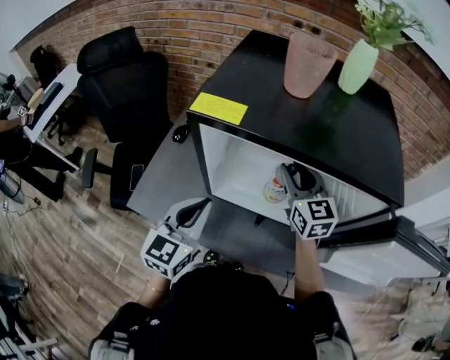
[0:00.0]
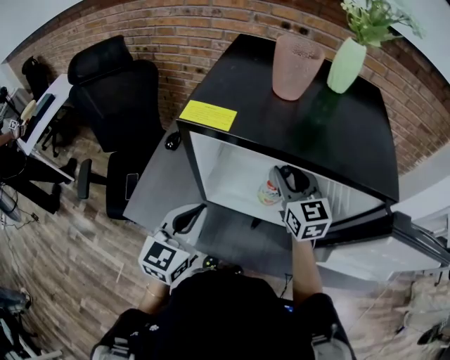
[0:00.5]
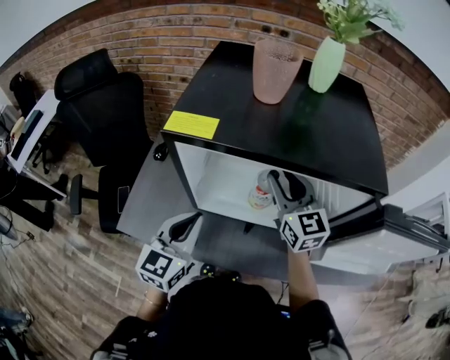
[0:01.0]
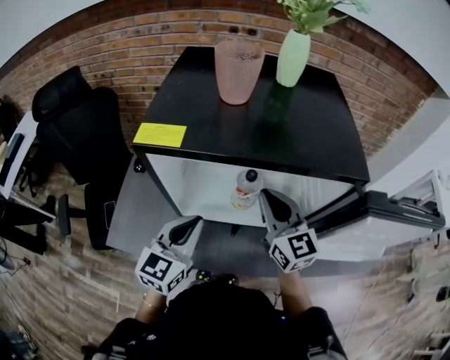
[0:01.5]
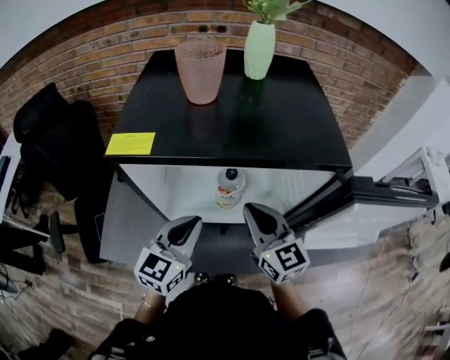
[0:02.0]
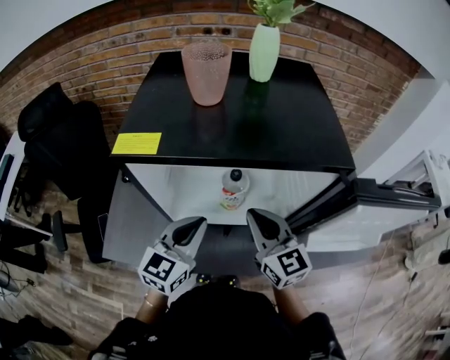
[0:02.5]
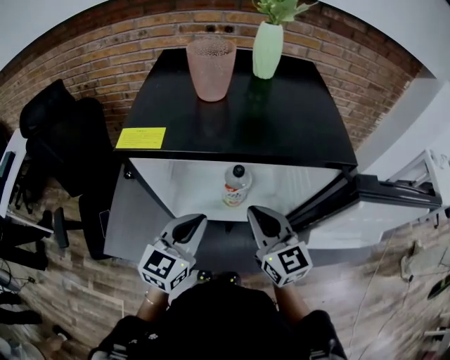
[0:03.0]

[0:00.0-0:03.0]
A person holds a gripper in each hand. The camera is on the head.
0:00.0 to 0:01.5: The right gripper travels backward by about 5 cm, and closes. Meanwhile the left gripper heads to the right, covering roughly 5 cm.
0:01.5 to 0:03.0: The right gripper ends up roughly 5 cm from where it was.

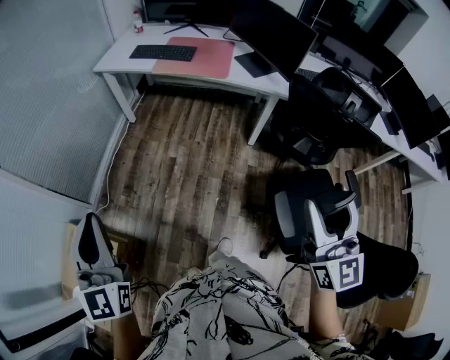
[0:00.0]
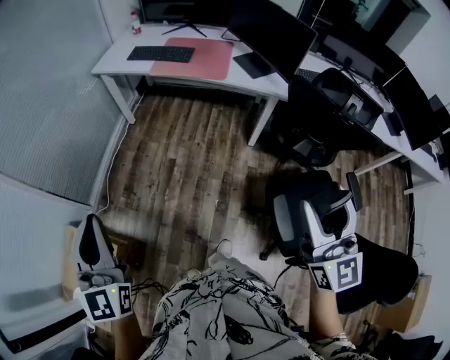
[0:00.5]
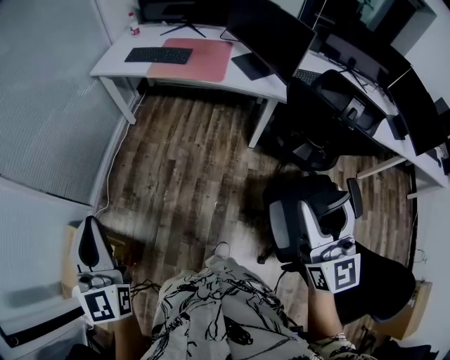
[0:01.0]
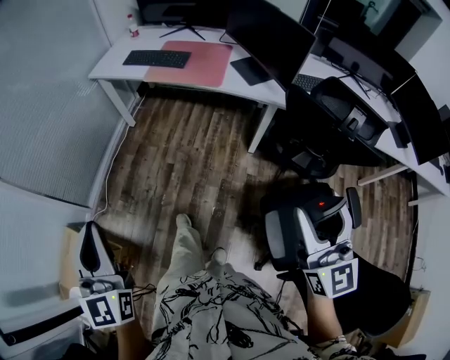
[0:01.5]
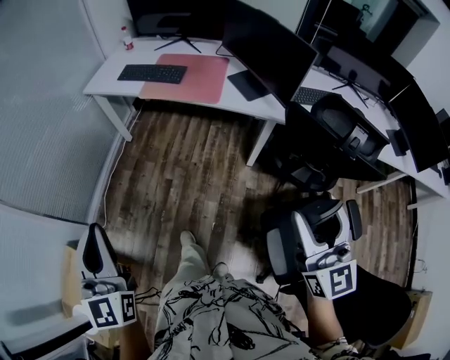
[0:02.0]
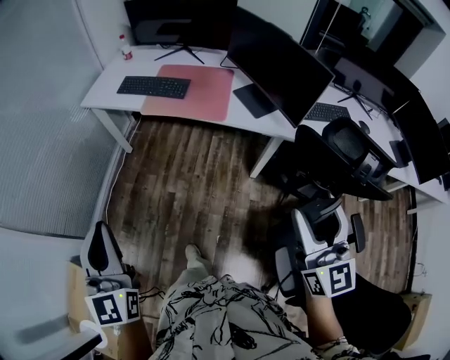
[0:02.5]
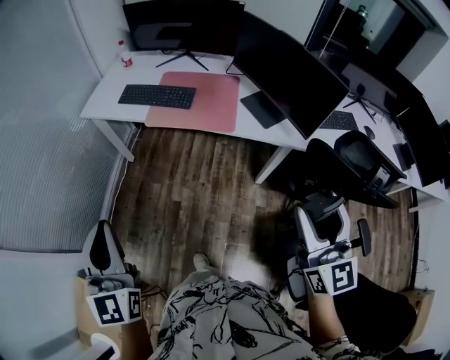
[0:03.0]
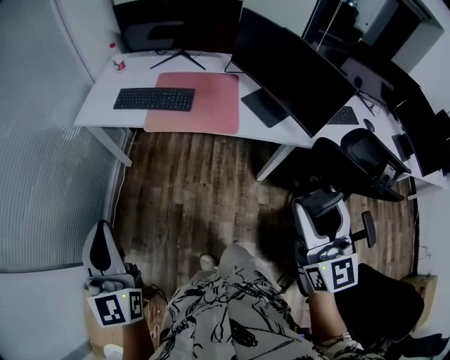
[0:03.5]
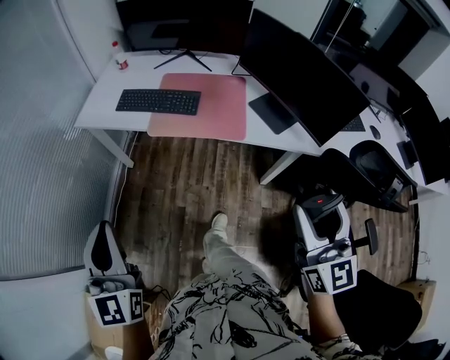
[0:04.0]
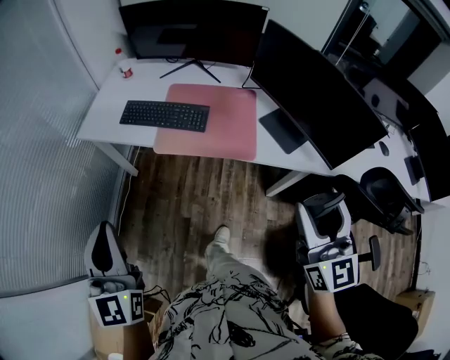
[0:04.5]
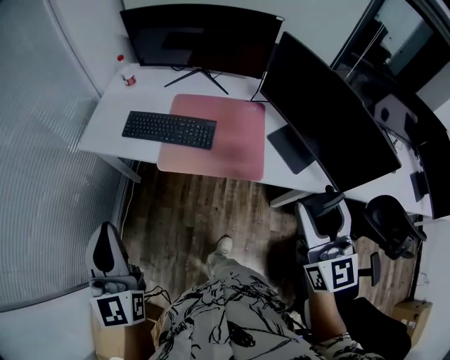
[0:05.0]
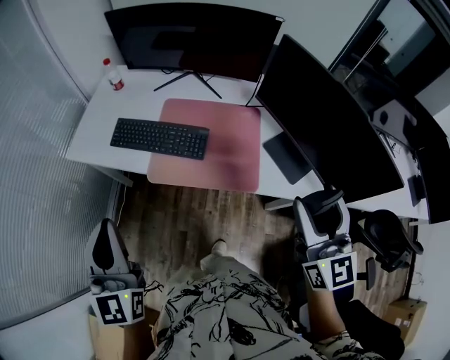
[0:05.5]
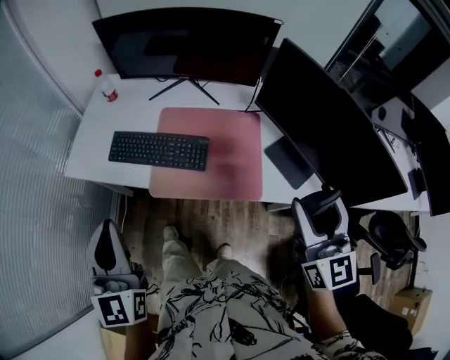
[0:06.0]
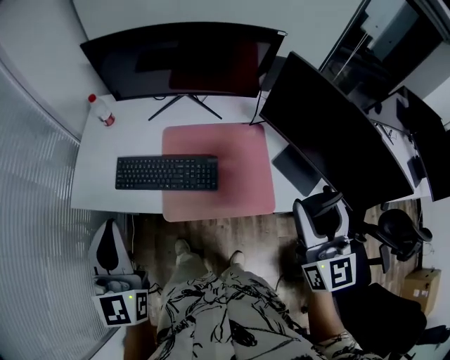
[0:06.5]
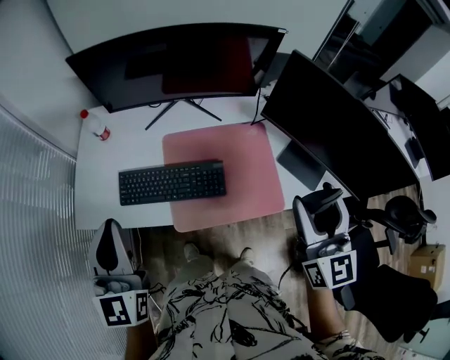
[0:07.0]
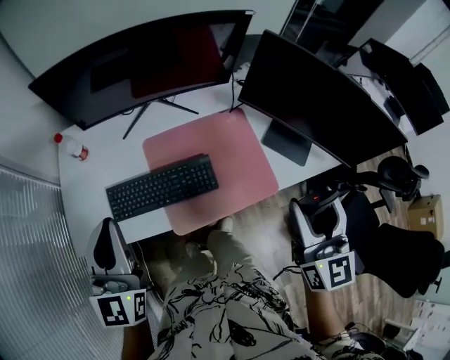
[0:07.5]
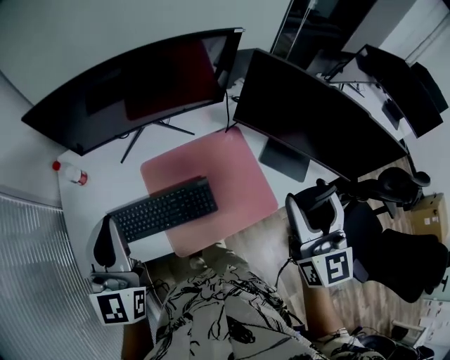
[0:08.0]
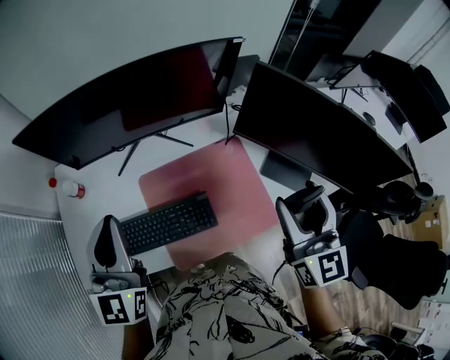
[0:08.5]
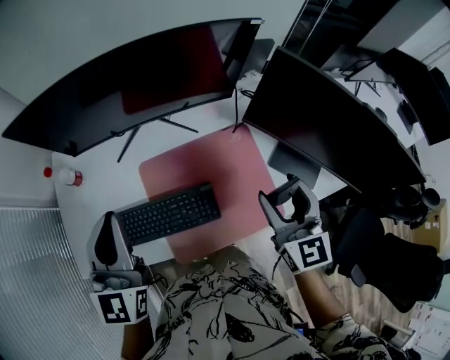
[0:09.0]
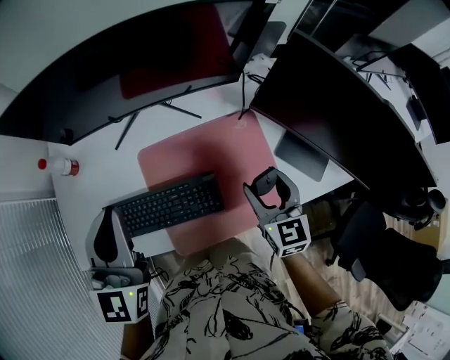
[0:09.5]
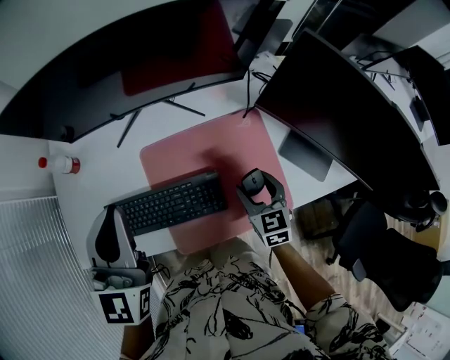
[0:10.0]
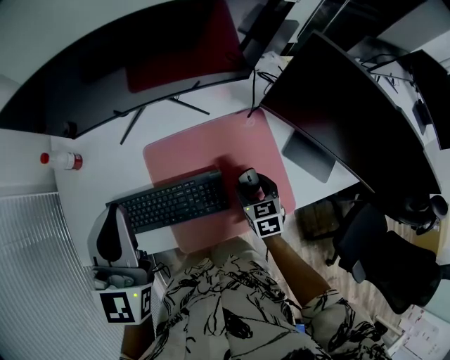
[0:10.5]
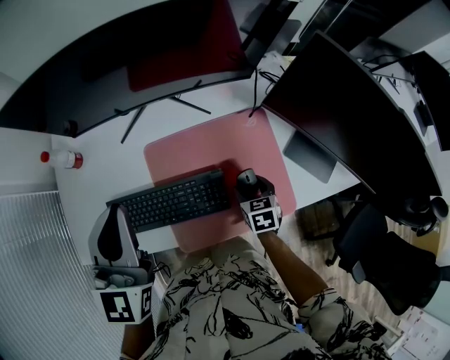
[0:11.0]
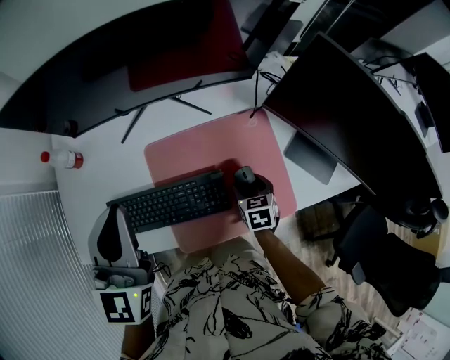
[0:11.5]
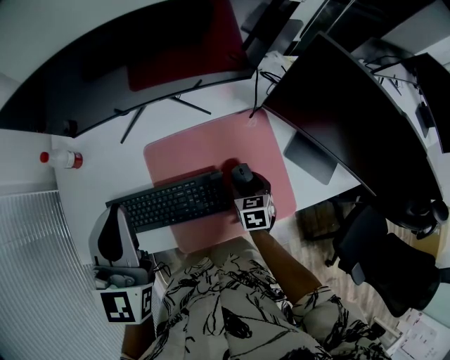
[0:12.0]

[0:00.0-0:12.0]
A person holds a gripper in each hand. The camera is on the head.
0:00.0 to 0:02.0: The two grippers go some 15 cm forward and to the right.
0:02.0 to 0:04.0: The right gripper heads forward and to the left, covering approximately 30 cm. Meanwhile the left gripper travels forward by approximately 30 cm.
0:04.0 to 0:06.0: The grippers both shift forward by about 30 cm.
0:06.0 to 0:08.0: The left gripper changes place by roughly 25 cm, and rotates some 30 degrees. The right gripper shifts by roughly 10 cm, and changes its angle by about 30 degrees.
0:08.0 to 0:10.0: The left gripper shifts approximately 10 cm forward; the right gripper goes roughly 30 cm downward, and tilts its fingers some 40 degrees downward.
0:10.0 to 0:12.0: The right gripper shifts about 10 cm downward.

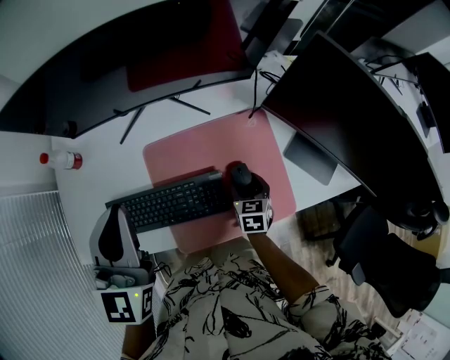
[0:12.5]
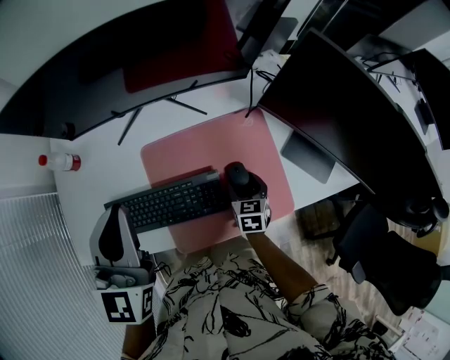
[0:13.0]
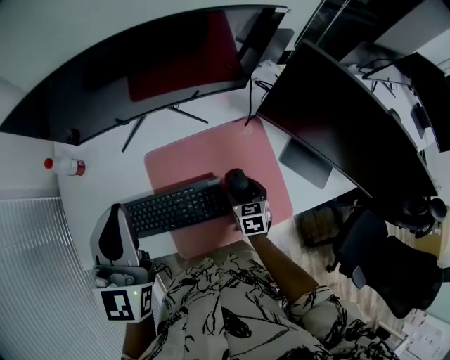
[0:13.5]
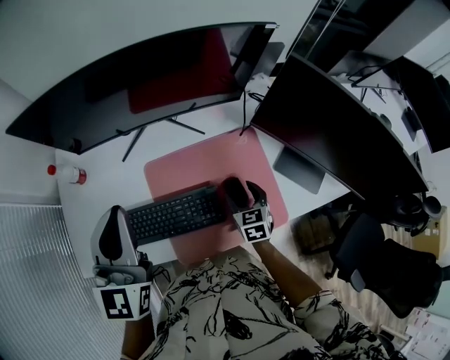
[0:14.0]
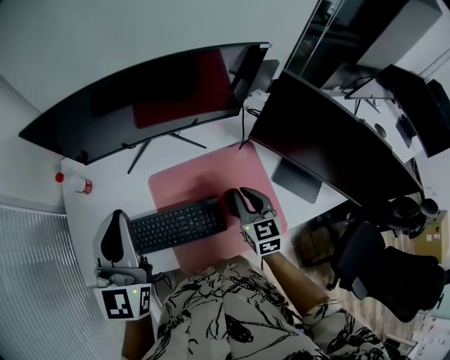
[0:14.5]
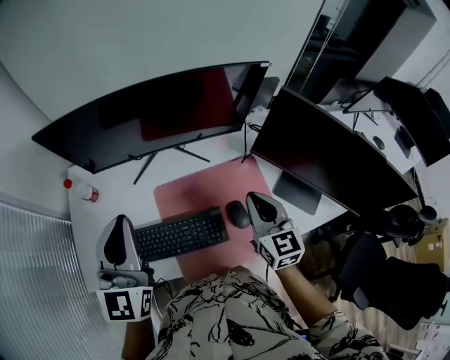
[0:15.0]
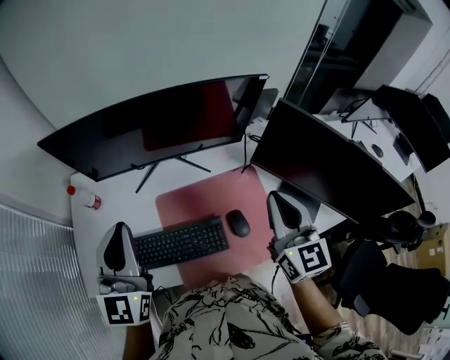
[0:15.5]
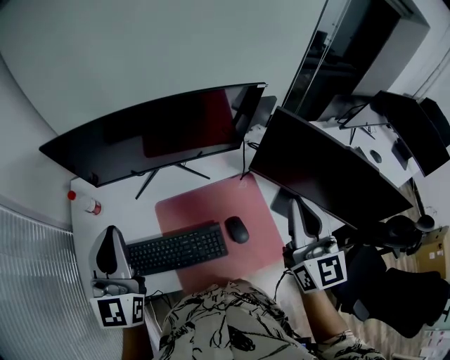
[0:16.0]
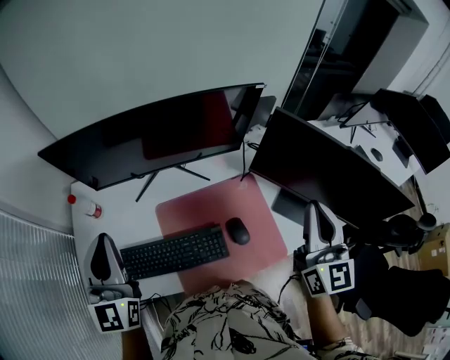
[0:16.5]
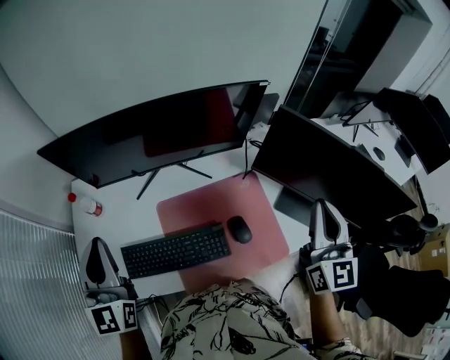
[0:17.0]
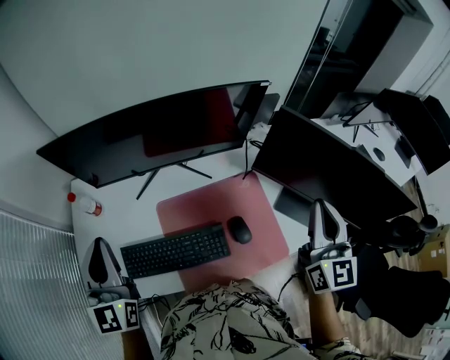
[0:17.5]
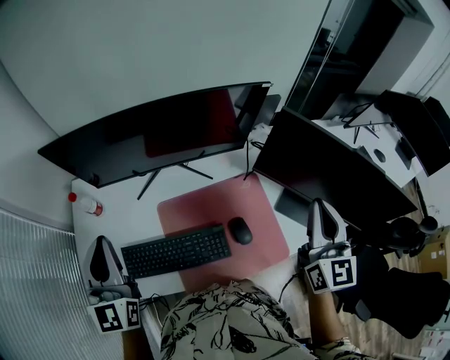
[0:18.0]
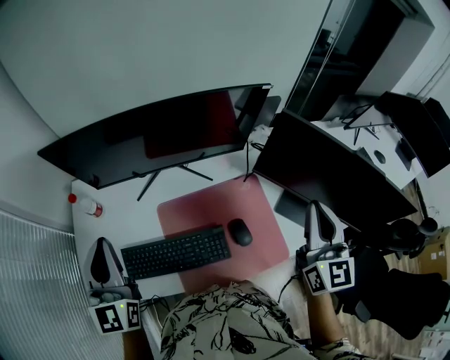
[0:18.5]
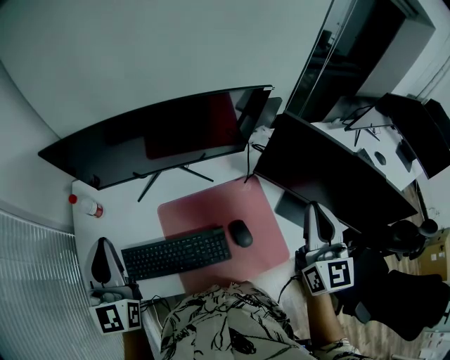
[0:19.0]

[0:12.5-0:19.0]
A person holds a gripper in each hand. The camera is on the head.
0:12.5 to 0:14.5: The right gripper travels upward by about 15 cm, changes its angle by roughly 20 degrees, and closes up.
0:14.5 to 0:17.0: The left gripper travels to the left by roughly 10 cm; the right gripper goes roughly 25 cm upward and to the right, and turns by about 30 degrees.
0:17.0 to 0:19.0: There are only small adjustments of the grippers.

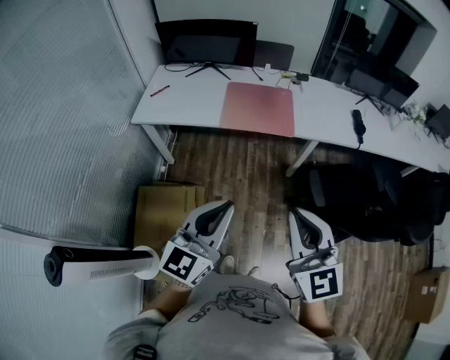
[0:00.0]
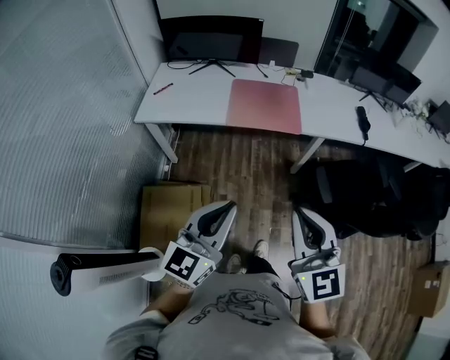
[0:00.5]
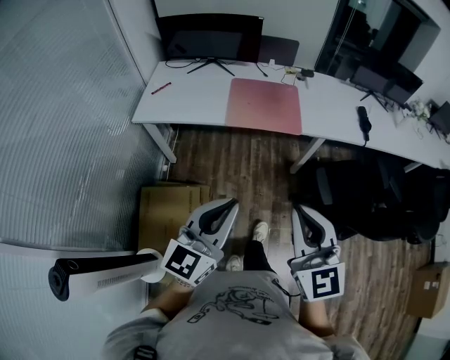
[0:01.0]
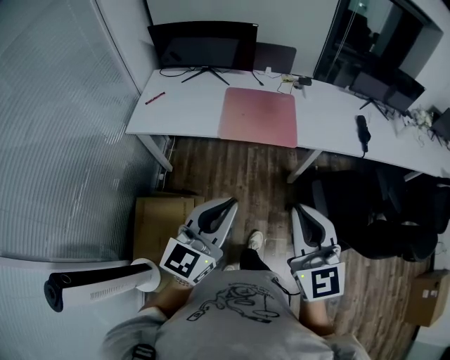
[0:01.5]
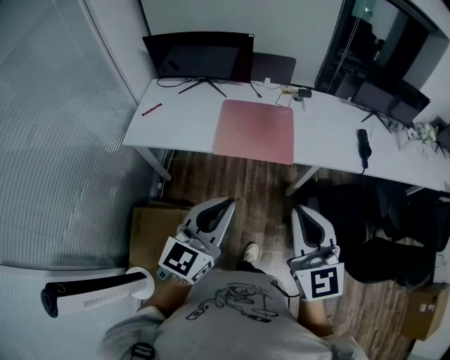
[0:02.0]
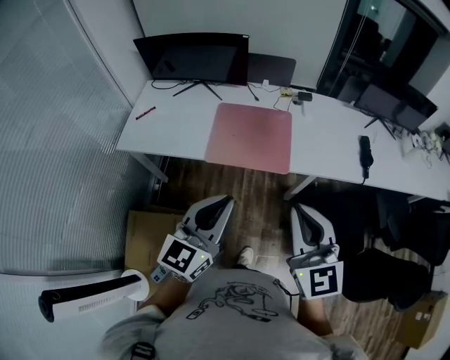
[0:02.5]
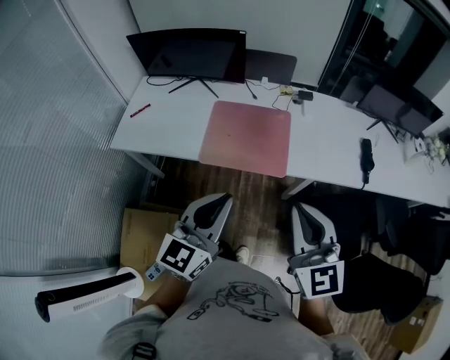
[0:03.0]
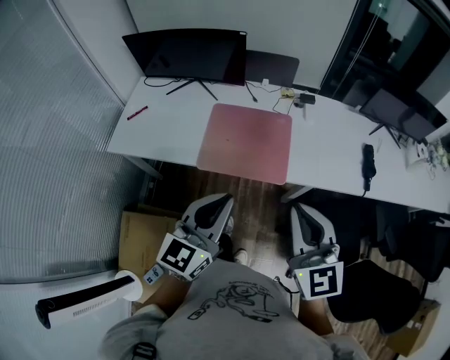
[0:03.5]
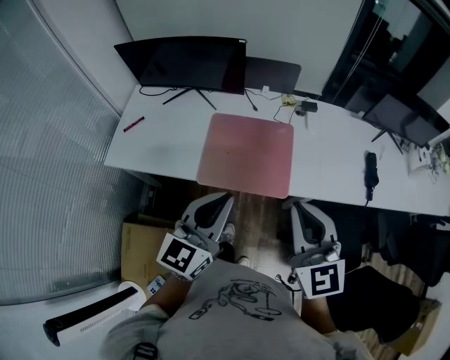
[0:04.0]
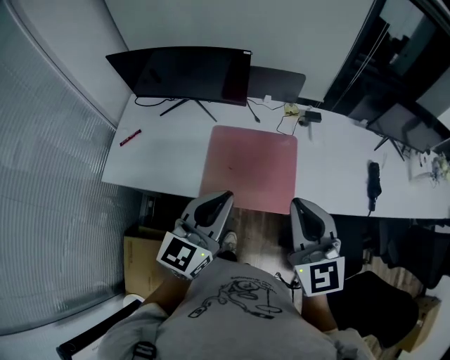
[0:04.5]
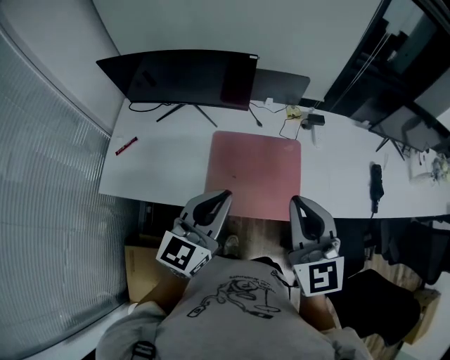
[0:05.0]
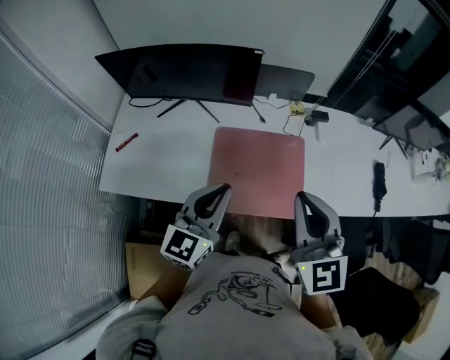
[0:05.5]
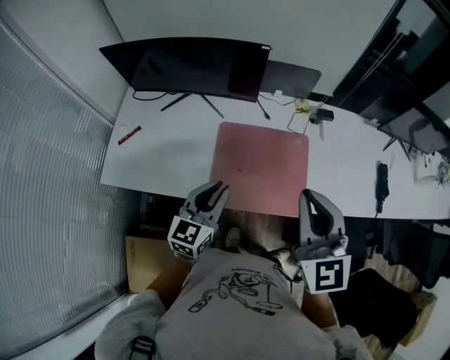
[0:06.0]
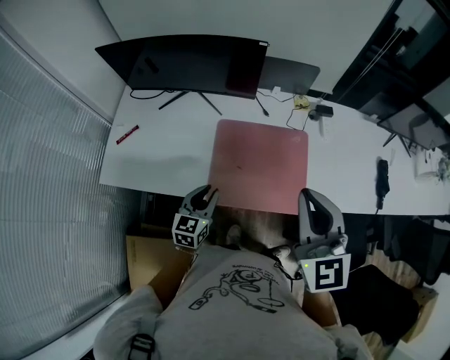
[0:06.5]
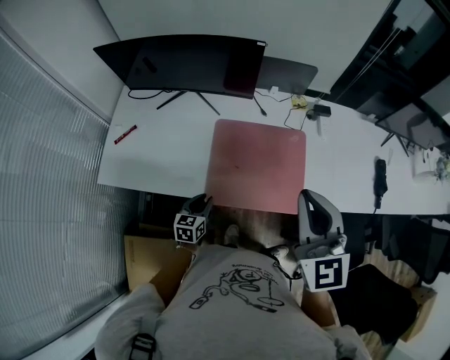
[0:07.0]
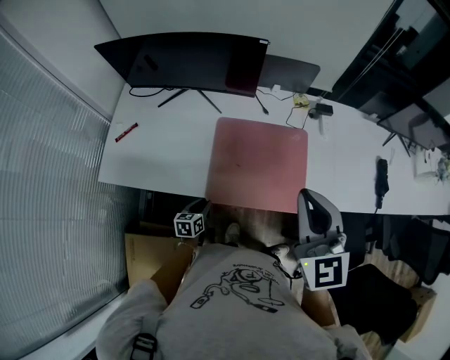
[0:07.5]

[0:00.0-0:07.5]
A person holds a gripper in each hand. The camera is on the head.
0:00.0 to 0:02.0: The grippers both shift forward by some 20 cm.
0:02.0 to 0:04.0: The grippers both shift forward by some 25 cm.
0:04.0 to 0:05.5: The grippers both shift forward and to the left by approximately 20 cm.
0:05.5 to 0:07.5: The left gripper shifts about 35 cm downward, tips its fingers downward by some 40 degrees, and opens its fingers.
